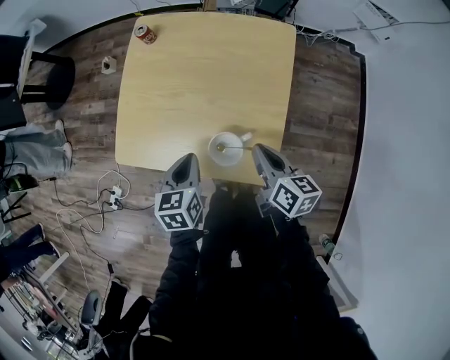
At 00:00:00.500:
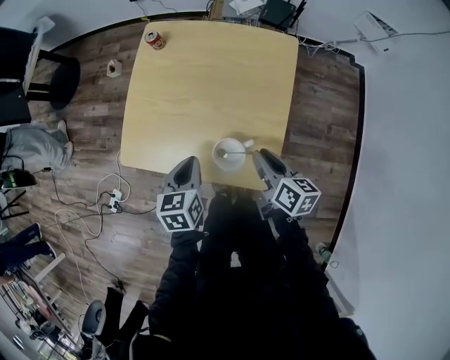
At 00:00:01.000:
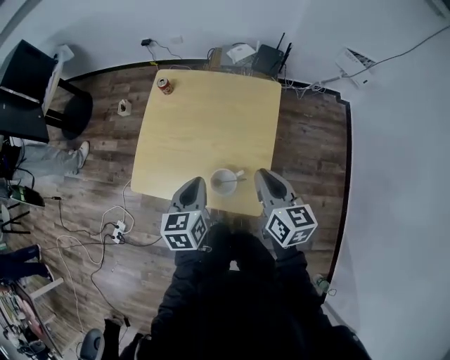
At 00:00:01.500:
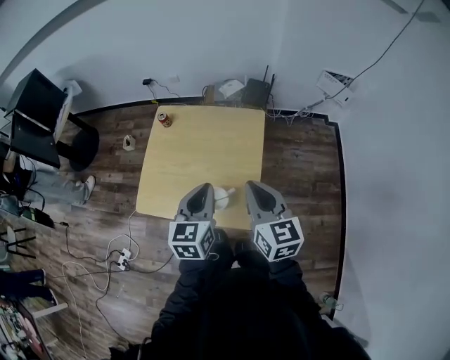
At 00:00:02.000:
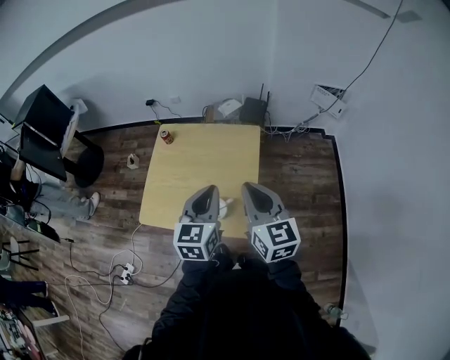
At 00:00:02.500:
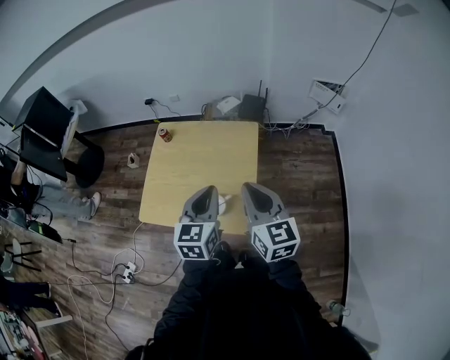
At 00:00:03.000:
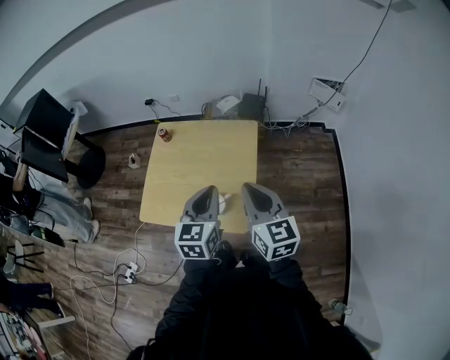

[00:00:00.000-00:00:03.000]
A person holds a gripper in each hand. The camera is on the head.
00:00:00.000 to 00:00:01.500: Both grippers move upward, roughly 25 cm. The right gripper turns by roughly 40 degrees, and opens, then closes once more. The left gripper rotates approximately 20 degrees.
00:00:01.500 to 00:00:03.000: The left gripper ends up some 5 cm from where it was, while the right gripper shifts by approximately 5 cm.

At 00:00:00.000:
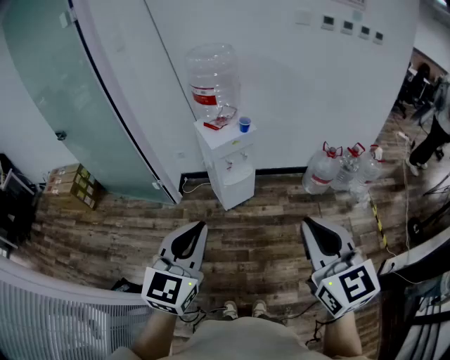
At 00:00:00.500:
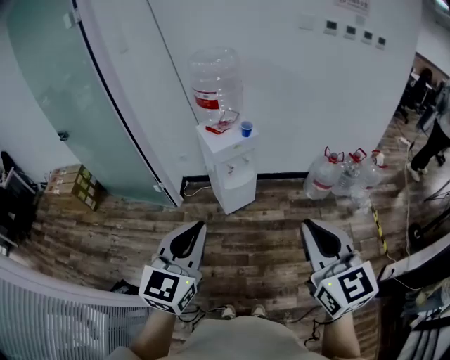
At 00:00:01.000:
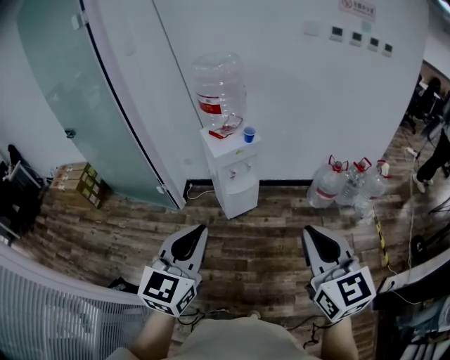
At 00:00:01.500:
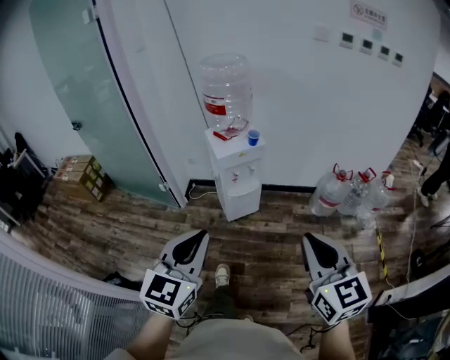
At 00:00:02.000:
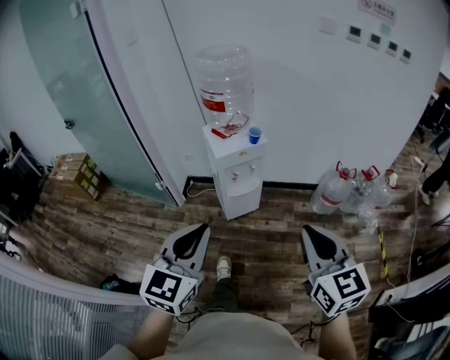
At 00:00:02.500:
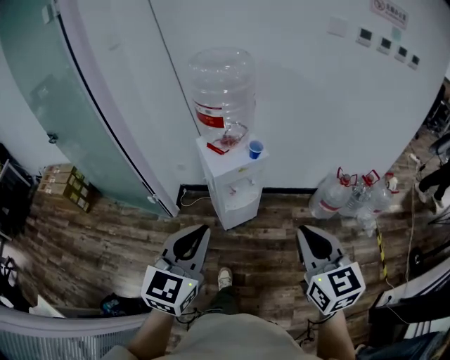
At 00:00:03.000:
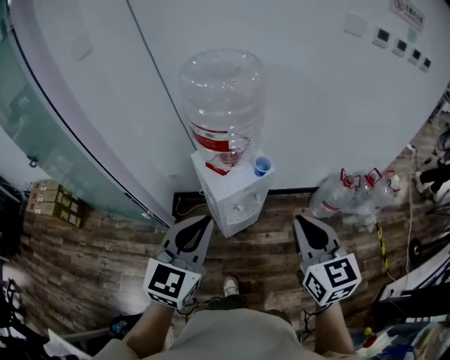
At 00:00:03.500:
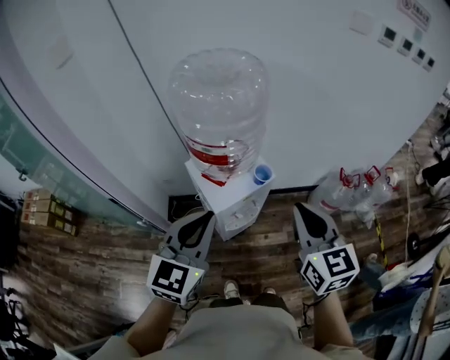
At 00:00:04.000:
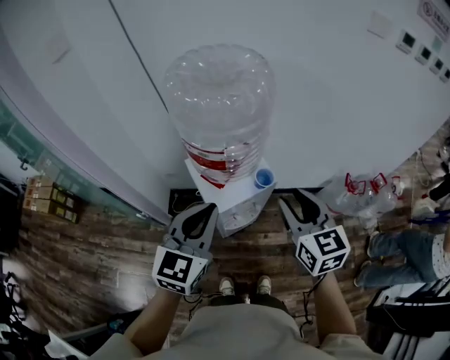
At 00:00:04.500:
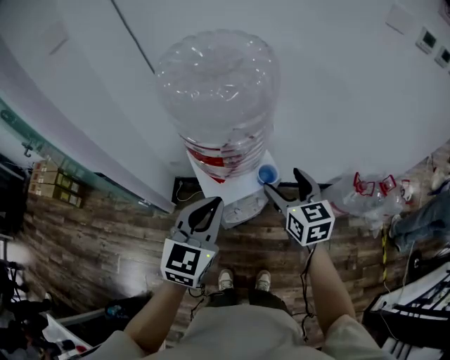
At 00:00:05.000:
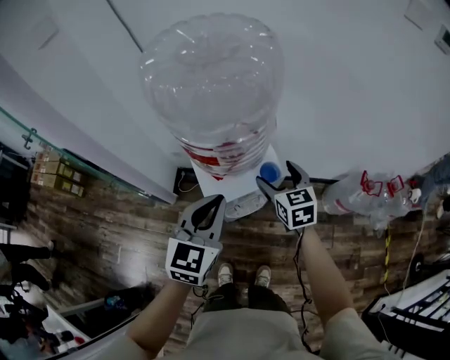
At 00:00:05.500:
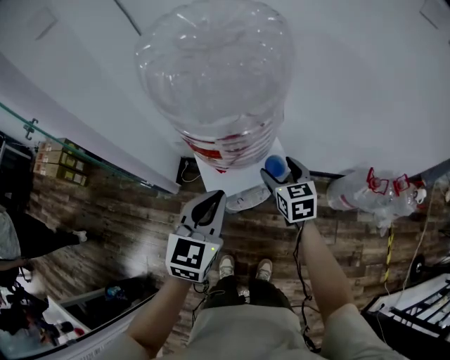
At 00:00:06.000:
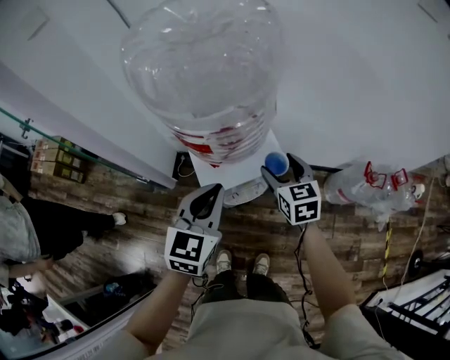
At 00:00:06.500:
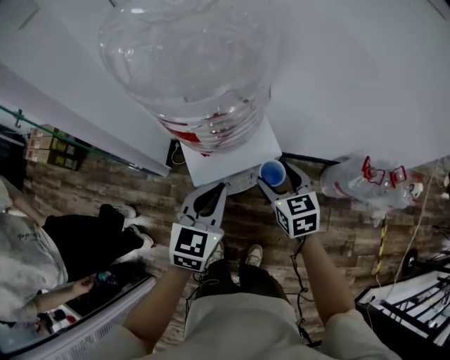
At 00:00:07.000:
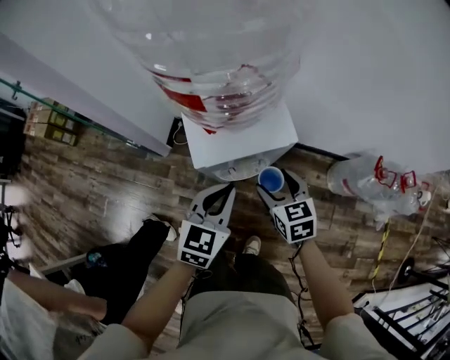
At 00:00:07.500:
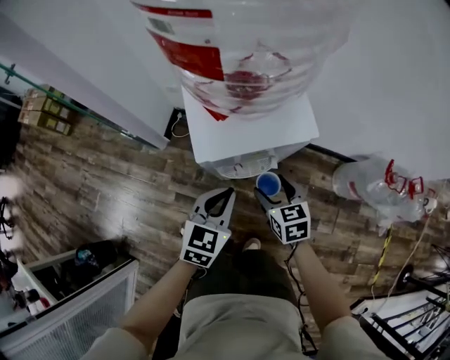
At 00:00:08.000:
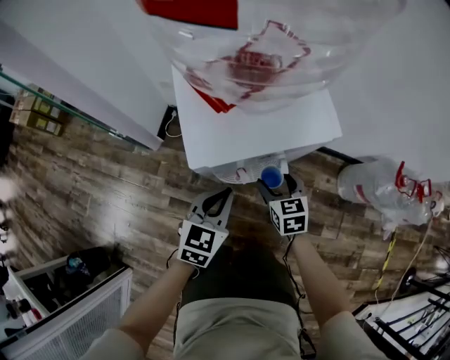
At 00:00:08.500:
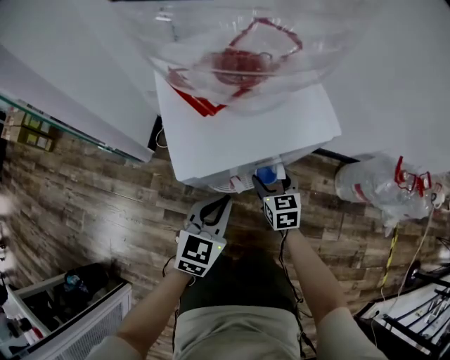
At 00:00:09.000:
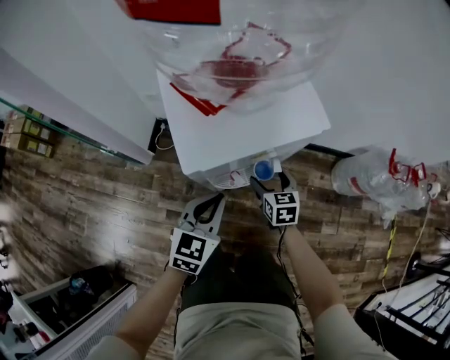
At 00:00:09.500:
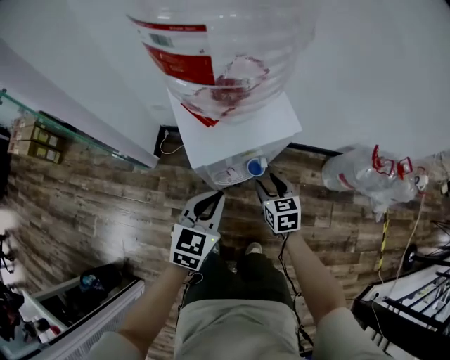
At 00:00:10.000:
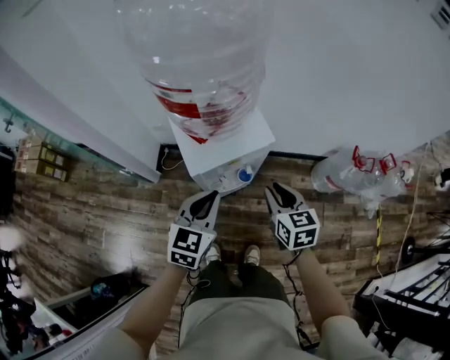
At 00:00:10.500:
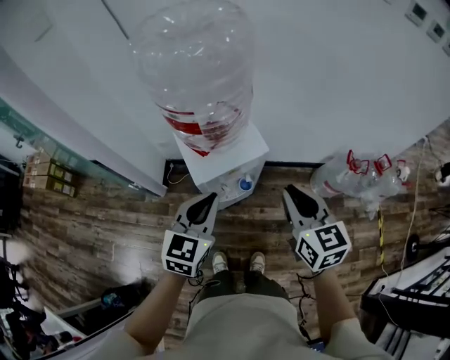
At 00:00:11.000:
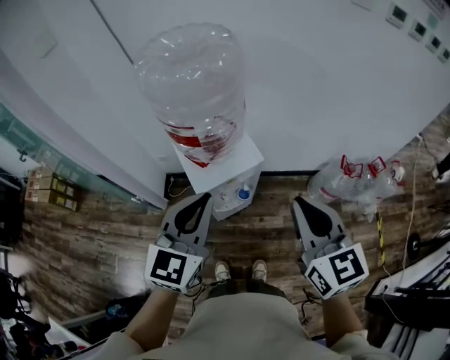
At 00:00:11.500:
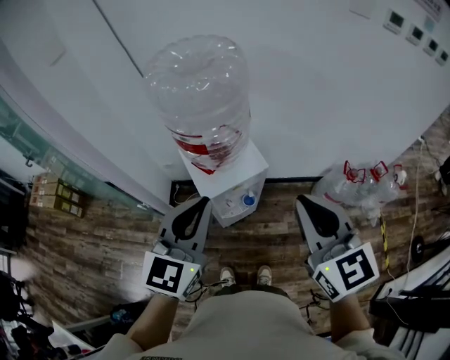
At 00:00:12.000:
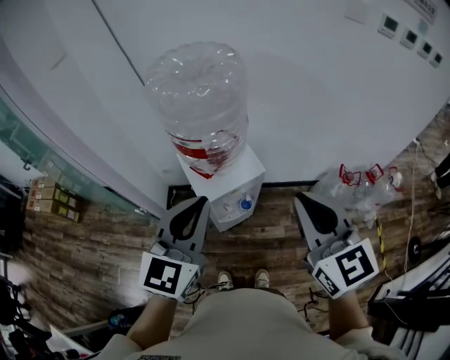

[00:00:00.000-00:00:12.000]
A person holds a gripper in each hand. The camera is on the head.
00:00:00.000 to 00:00:02.000: The right gripper moves forward and downward, approximately 15 cm. Meanwhile the left gripper heads forward, covering approximately 10 cm.
00:00:02.000 to 00:00:04.000: The pair of grippers is taken forward, some 40 cm.
00:00:04.000 to 00:00:06.000: The right gripper moves downward and forward, approximately 25 cm, and opens. Meanwhile the left gripper goes about 10 cm downward and forward.
00:00:06.000 to 00:00:08.000: The grippers both shift downward by about 35 cm.
00:00:08.000 to 00:00:10.000: The grippers both shift upward by some 25 cm. The right gripper closes.
00:00:10.000 to 00:00:12.000: The two grippers go roughly 30 cm upward. The right gripper swivels some 30 degrees; the left gripper turns by some 20 degrees.

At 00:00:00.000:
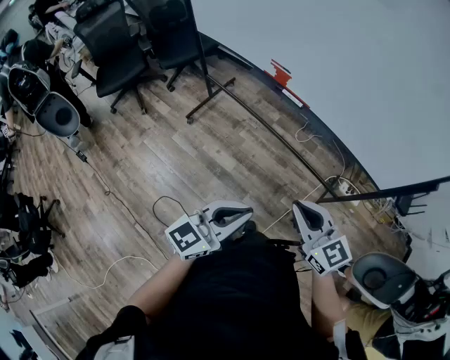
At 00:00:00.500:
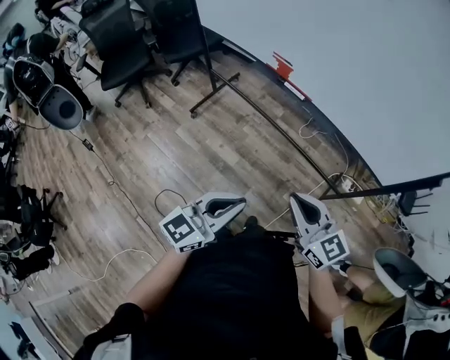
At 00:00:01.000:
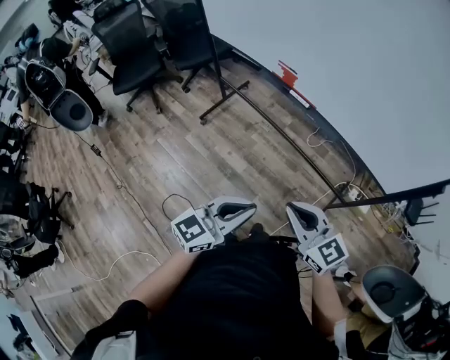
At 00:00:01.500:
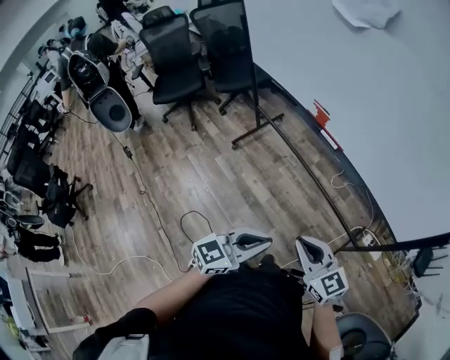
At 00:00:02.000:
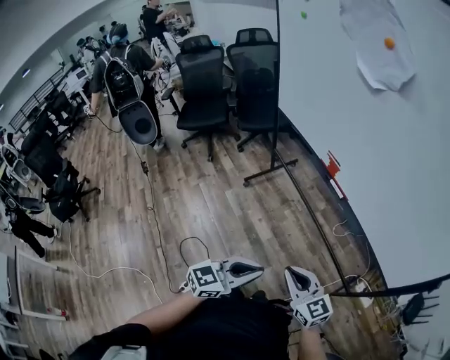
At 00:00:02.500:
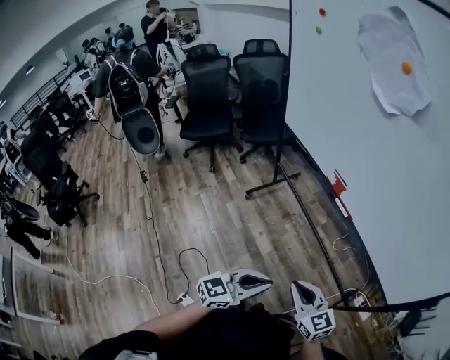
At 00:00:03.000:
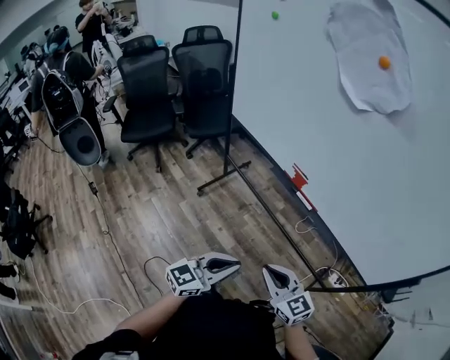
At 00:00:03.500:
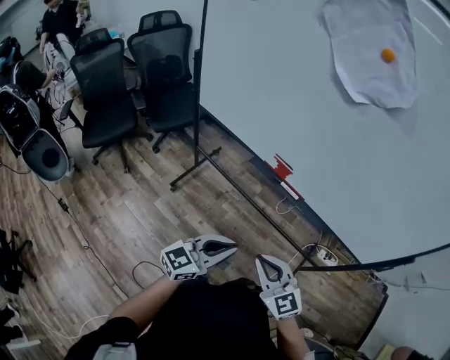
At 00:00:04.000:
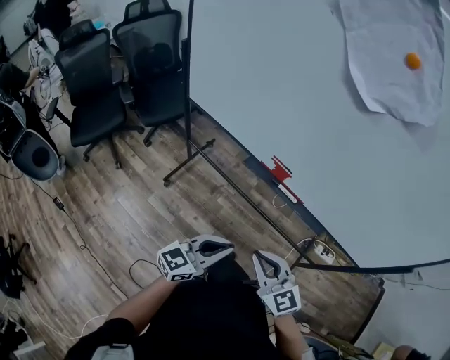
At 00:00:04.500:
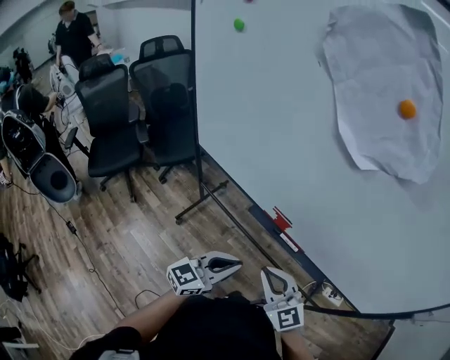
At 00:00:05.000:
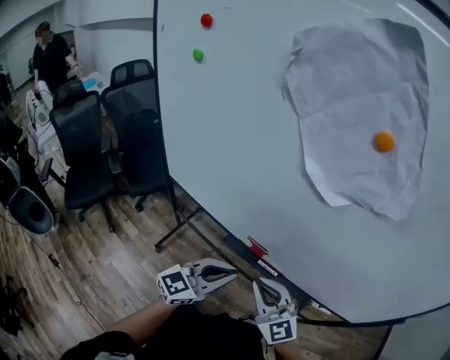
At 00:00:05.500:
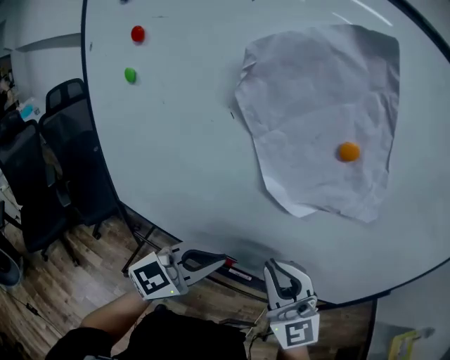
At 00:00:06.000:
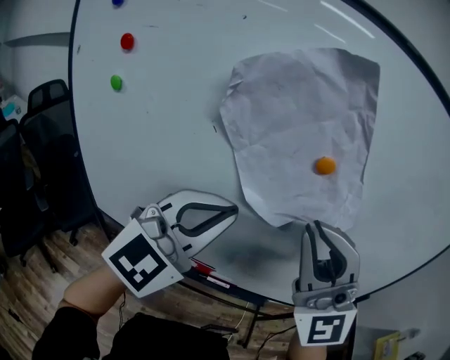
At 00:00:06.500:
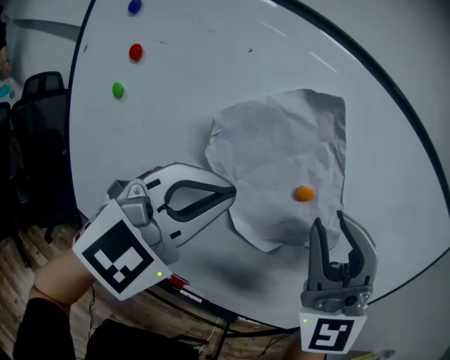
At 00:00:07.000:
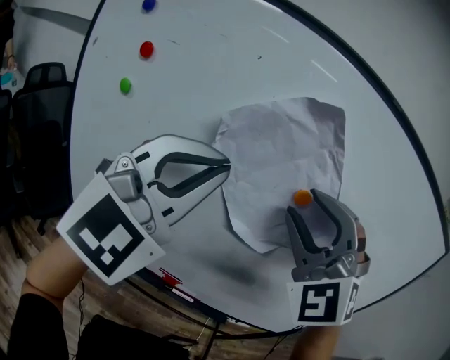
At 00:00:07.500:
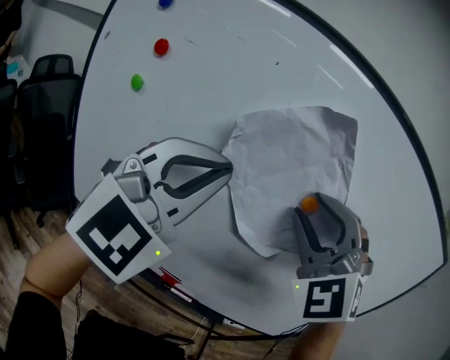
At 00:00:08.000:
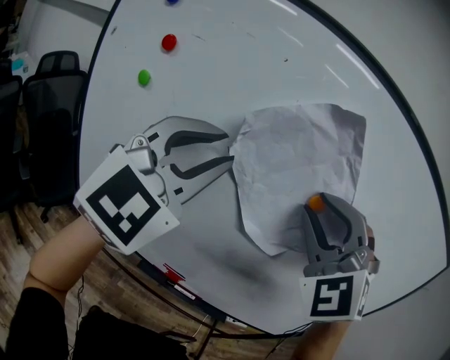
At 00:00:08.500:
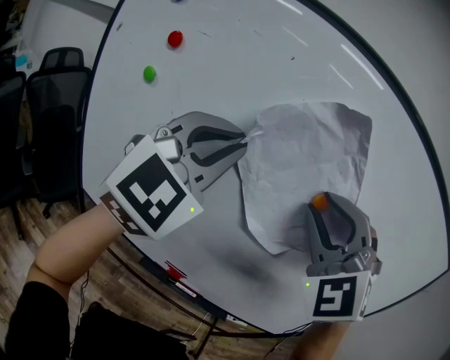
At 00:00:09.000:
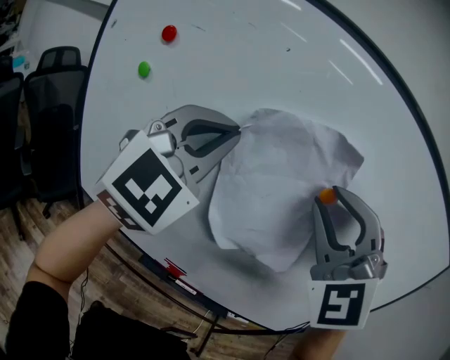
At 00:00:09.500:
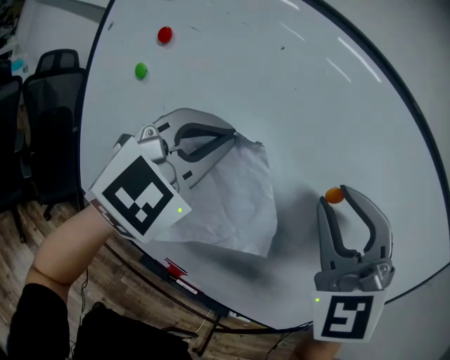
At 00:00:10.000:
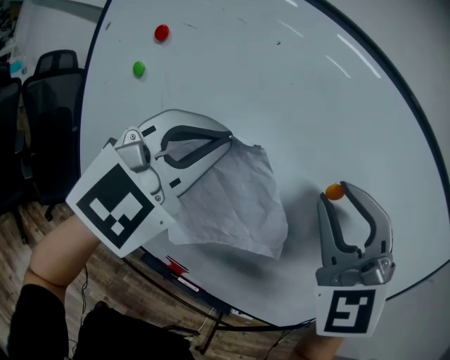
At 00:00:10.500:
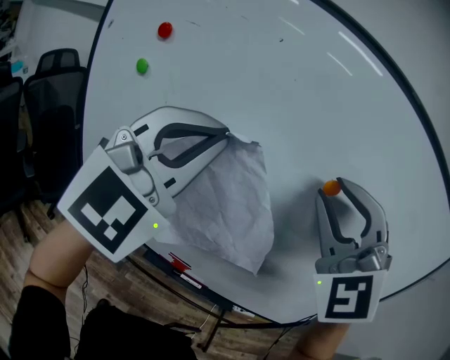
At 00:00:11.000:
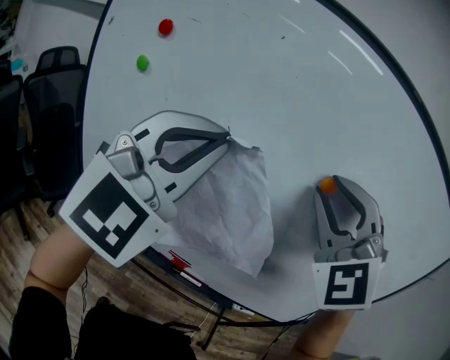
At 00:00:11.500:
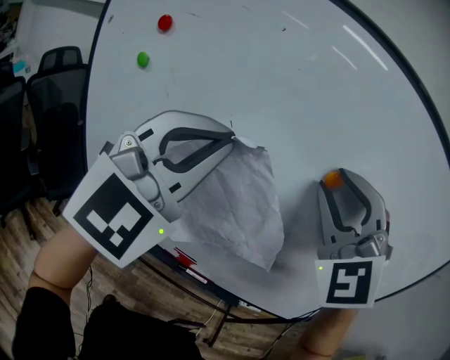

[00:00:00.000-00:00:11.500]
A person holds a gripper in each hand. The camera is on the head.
00:00:00.000 to 00:00:02.000: The right gripper ends up some 5 cm from where it was.
00:00:02.000 to 00:00:04.000: The two grippers go approximately 25 cm forward and to the left. The right gripper rotates roughly 30 degrees. The left gripper swivels approximately 20 degrees.
00:00:04.000 to 00:00:06.000: The two grippers go approximately 50 cm upward and forward. The right gripper angles its fingers upward, by about 30 degrees, while the left gripper rotates around the line of its fingers by some 50 degrees, clockwise from behind.
00:00:06.000 to 00:00:07.500: The left gripper travels upward and to the left by approximately 15 cm, and rotates some 20 degrees. Meanwhile the right gripper is displaced forward and upward by about 10 cm, turns by roughly 30 degrees, and opens up.
00:00:07.500 to 00:00:09.500: The left gripper opens, then closes once more. The right gripper moves approximately 5 cm.
00:00:09.500 to 00:00:11.500: The right gripper moves forward, roughly 5 cm.
